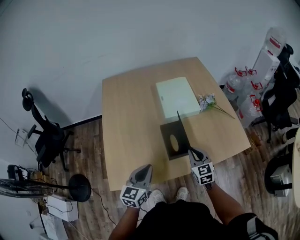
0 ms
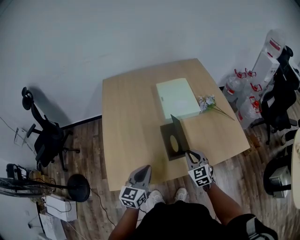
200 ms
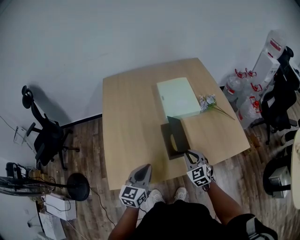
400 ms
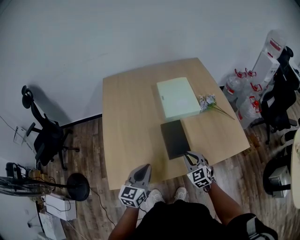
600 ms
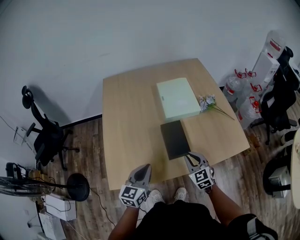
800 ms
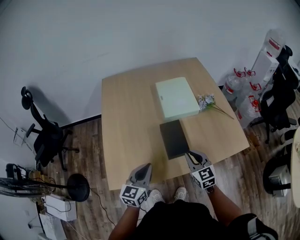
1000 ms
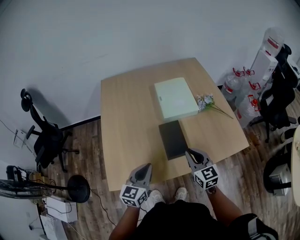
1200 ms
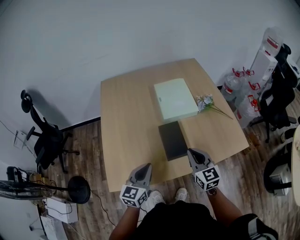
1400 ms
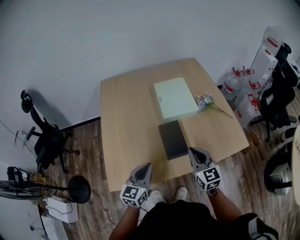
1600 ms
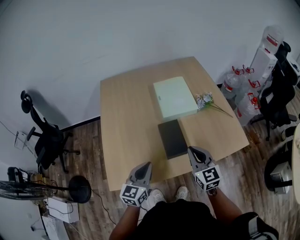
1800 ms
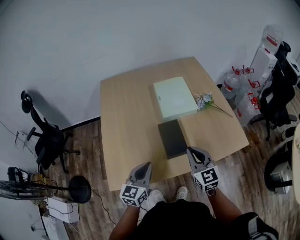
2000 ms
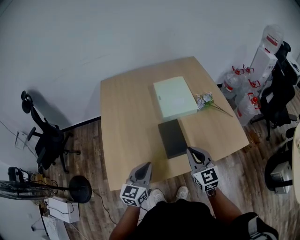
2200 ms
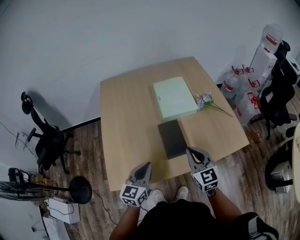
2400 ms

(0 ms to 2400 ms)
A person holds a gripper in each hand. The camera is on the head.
0 ms - 1200 ms: The right gripper shifts approximately 5 cm upward.
1200 ms - 2400 ms: The grippers move only a little.

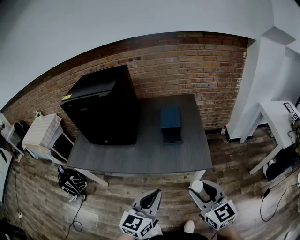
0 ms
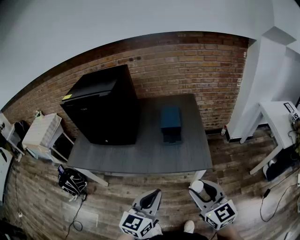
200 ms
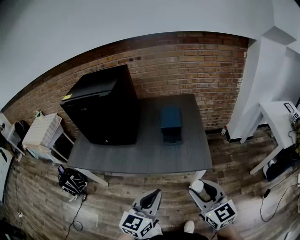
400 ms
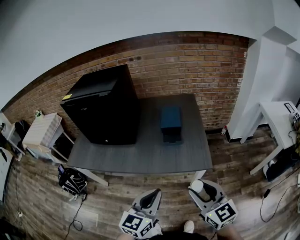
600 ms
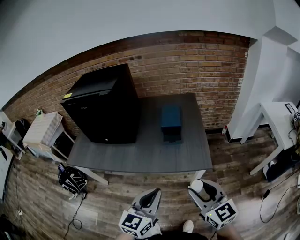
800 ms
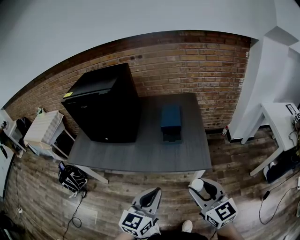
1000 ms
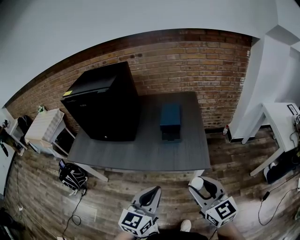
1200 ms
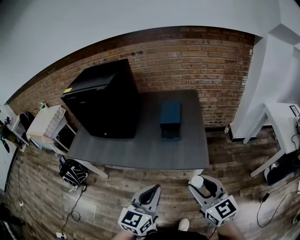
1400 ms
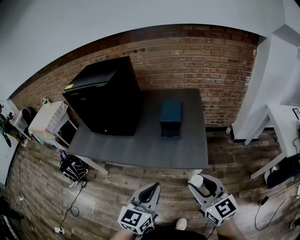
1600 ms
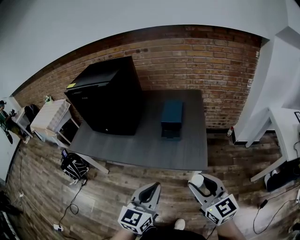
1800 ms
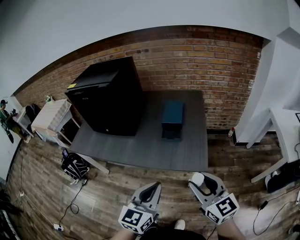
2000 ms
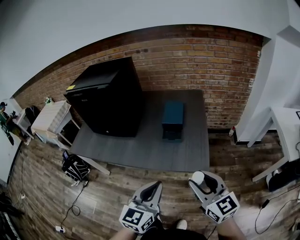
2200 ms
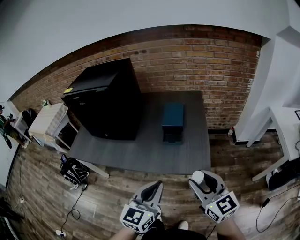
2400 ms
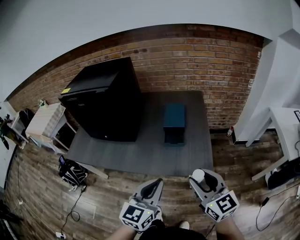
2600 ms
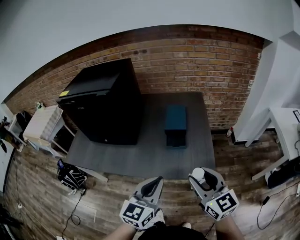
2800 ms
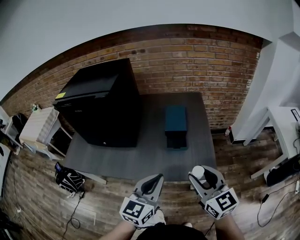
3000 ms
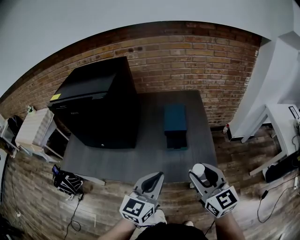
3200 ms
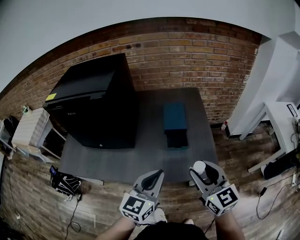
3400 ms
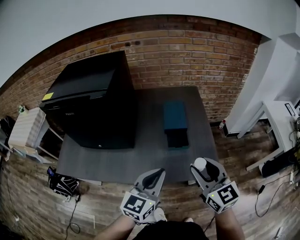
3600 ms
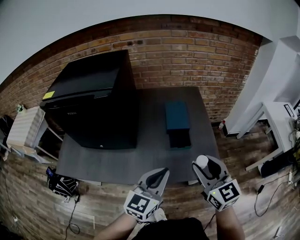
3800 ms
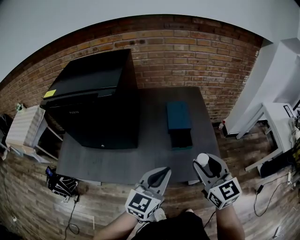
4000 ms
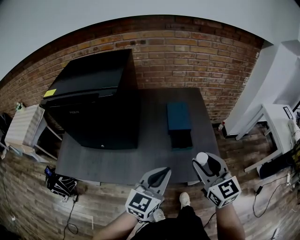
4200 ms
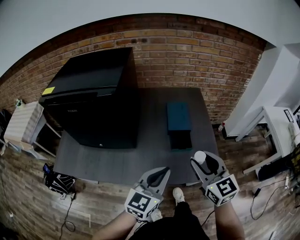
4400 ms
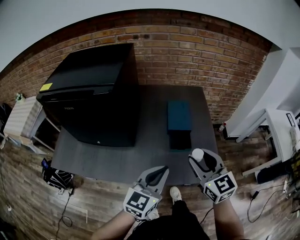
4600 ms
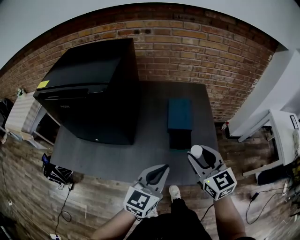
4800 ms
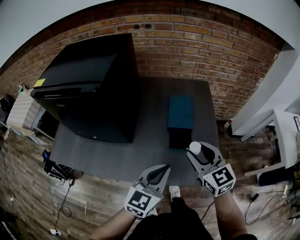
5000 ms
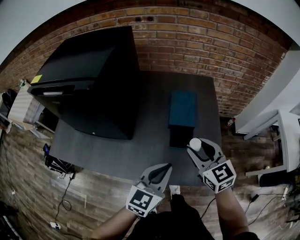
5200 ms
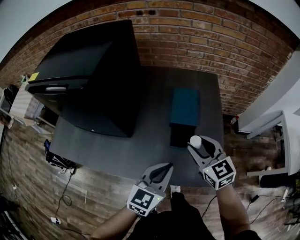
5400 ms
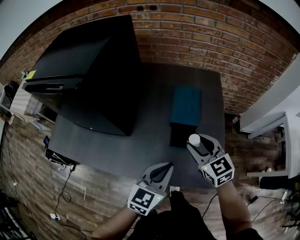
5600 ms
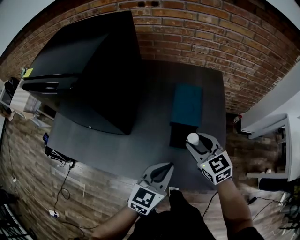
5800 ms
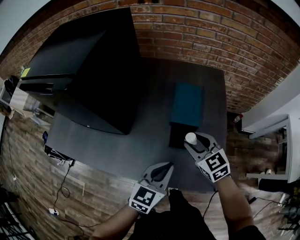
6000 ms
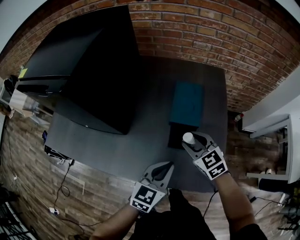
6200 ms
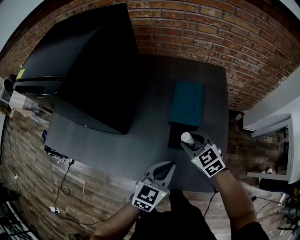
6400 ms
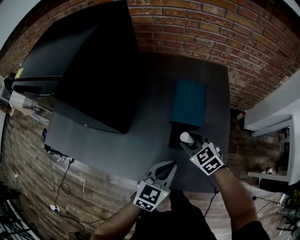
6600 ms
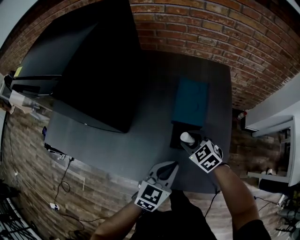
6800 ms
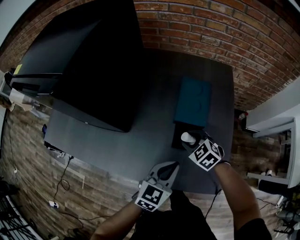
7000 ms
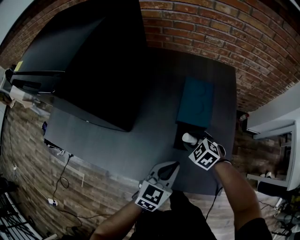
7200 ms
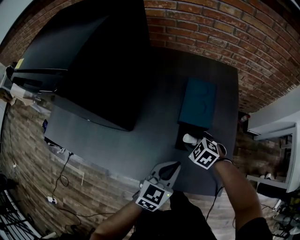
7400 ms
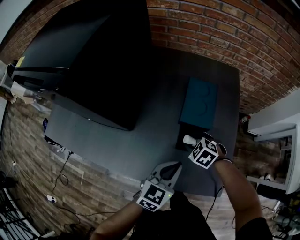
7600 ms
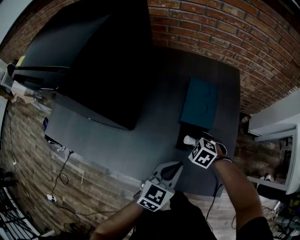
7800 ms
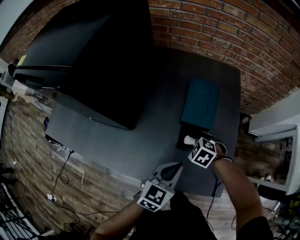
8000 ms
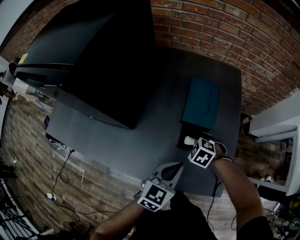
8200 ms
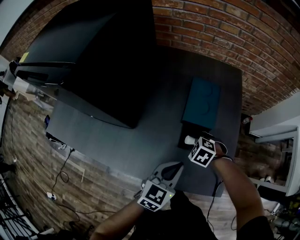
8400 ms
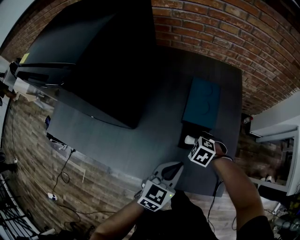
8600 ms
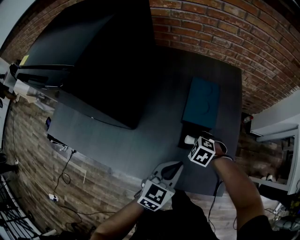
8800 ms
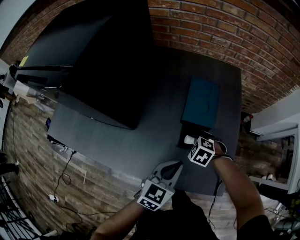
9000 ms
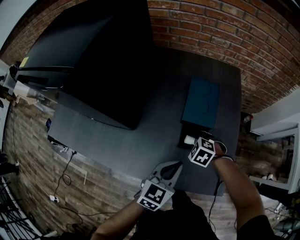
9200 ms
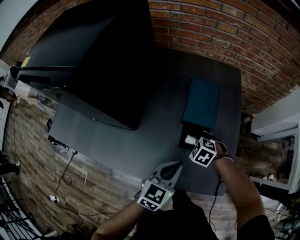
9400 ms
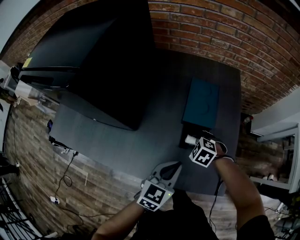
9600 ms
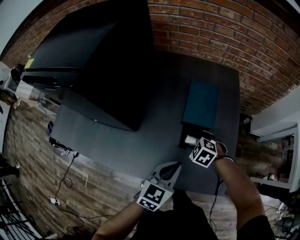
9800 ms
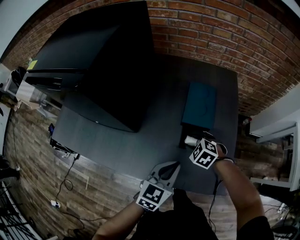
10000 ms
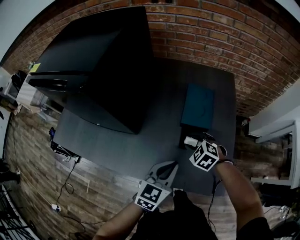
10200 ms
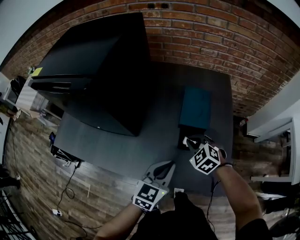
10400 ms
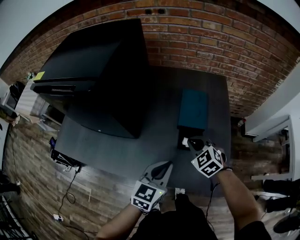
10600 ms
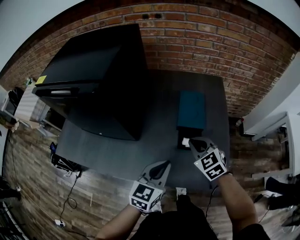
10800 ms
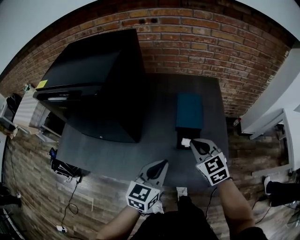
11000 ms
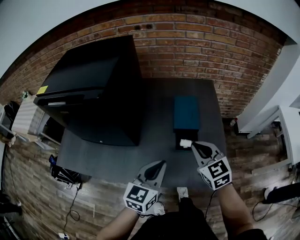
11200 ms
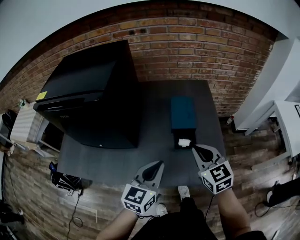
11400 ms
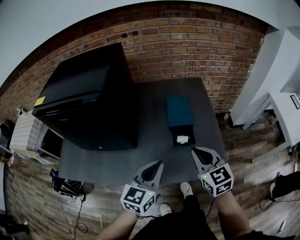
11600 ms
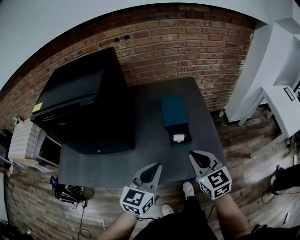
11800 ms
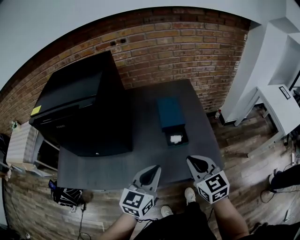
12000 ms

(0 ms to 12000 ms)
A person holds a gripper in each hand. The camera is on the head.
0 ms - 1600 ms: The two grippers go some 5 cm to the right.
1600 ms - 3000 ms: Both grippers move forward and to the left, about 15 cm.
3000 ms - 4400 ms: Both grippers move forward and to the left, roughly 10 cm.
4400 ms - 6000 ms: The right gripper heads forward and downward, covering about 25 cm, and changes its angle by some 30 degrees. Meanwhile the left gripper heads downward, forward and to the right, covering some 15 cm.
6000 ms - 7600 ms: The right gripper is displaced downward by some 15 cm, and tilts its fingers approximately 30 degrees downward. Meanwhile the left gripper changes place by some 5 cm.
7600 ms - 9000 ms: The grippers make only small movements.
9000 ms - 10400 ms: The right gripper heads upward, covering about 10 cm, turns by some 20 degrees, and closes its fingers. The left gripper shifts by some 5 cm.
10400 ms - 12000 ms: The right gripper shifts some 25 cm backward and upward, and swivels roughly 50 degrees. The left gripper travels upward, backward and to the left by about 15 cm.

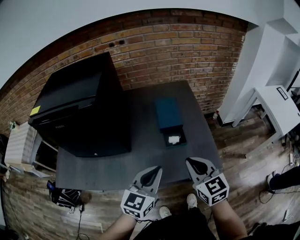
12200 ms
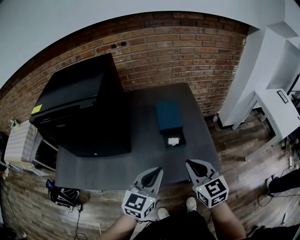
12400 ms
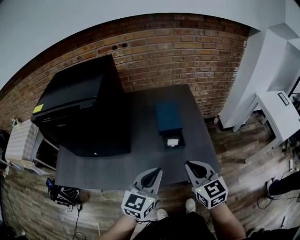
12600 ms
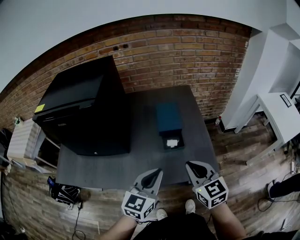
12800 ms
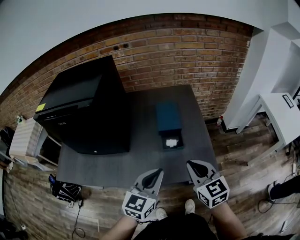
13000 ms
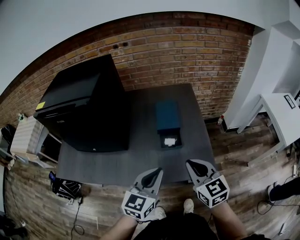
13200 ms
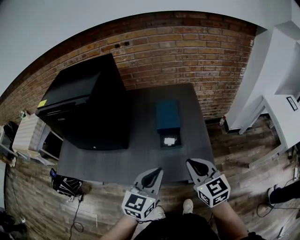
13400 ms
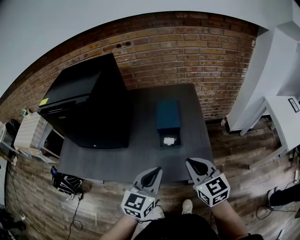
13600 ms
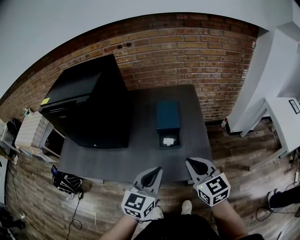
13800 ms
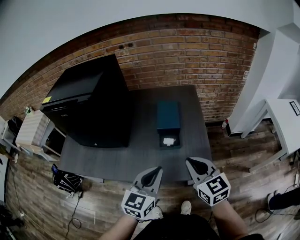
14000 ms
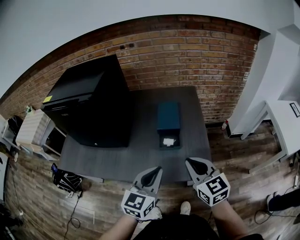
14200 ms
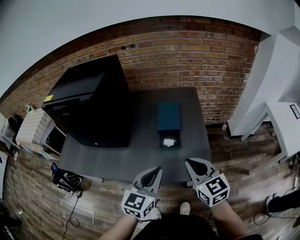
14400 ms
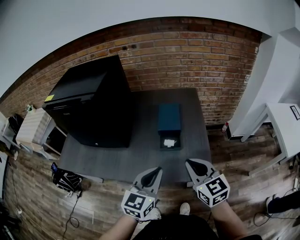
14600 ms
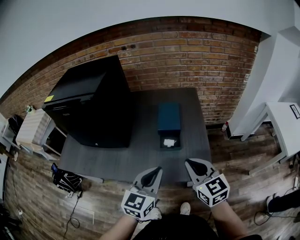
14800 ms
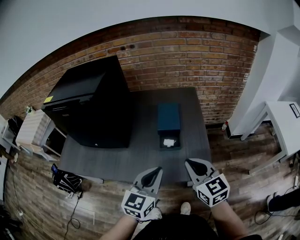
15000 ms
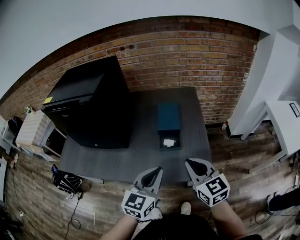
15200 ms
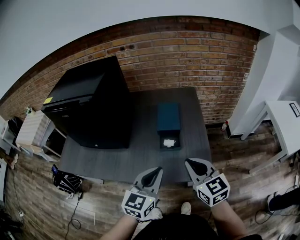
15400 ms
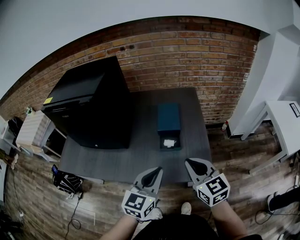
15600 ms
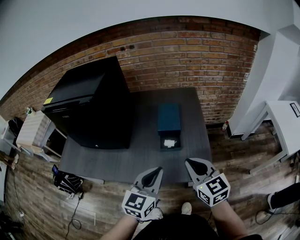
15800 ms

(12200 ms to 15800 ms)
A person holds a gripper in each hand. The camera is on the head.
12200 ms - 14000 ms: The two grippers go roughly 10 cm to the right.
14000 ms - 15800 ms: Both grippers stay about where they are.

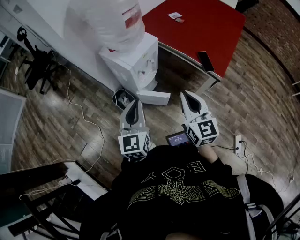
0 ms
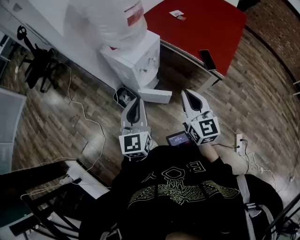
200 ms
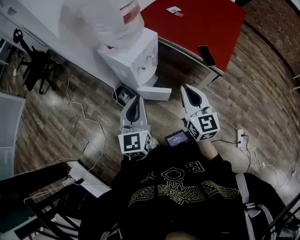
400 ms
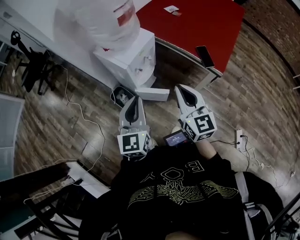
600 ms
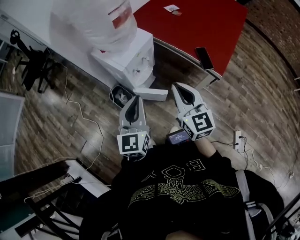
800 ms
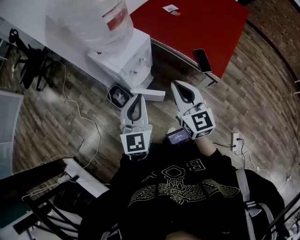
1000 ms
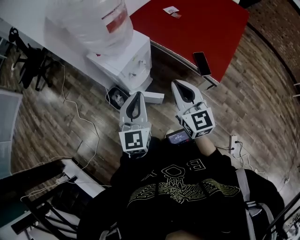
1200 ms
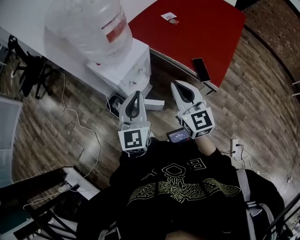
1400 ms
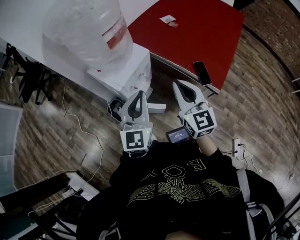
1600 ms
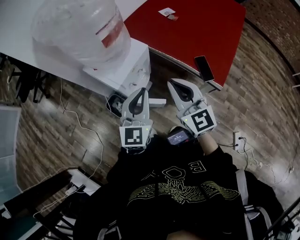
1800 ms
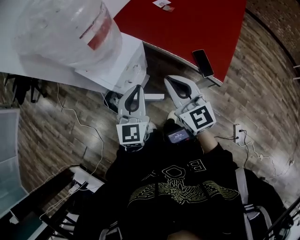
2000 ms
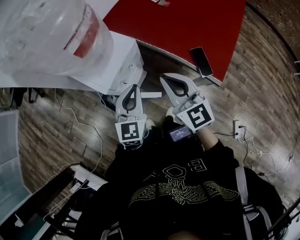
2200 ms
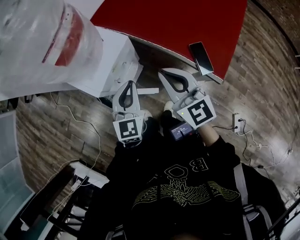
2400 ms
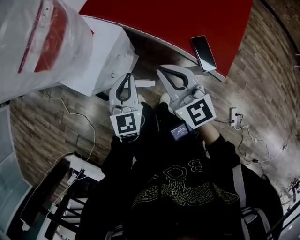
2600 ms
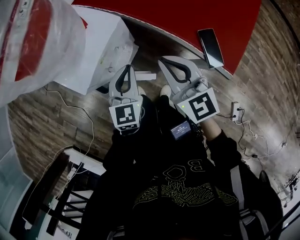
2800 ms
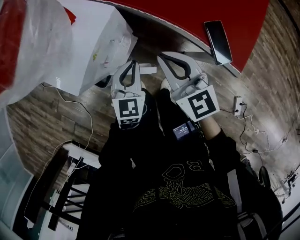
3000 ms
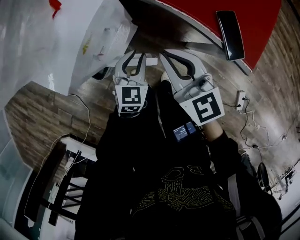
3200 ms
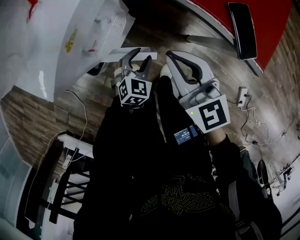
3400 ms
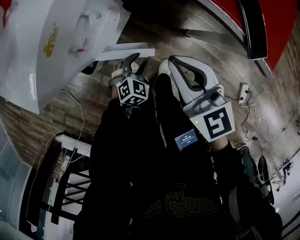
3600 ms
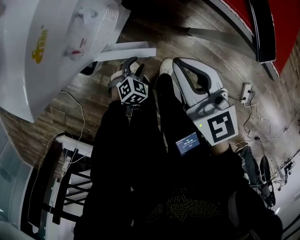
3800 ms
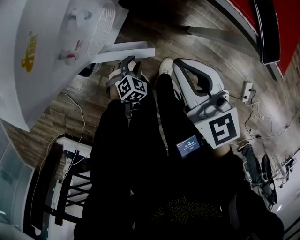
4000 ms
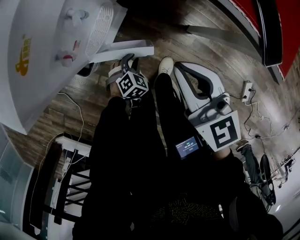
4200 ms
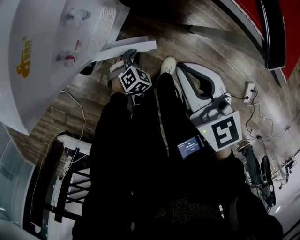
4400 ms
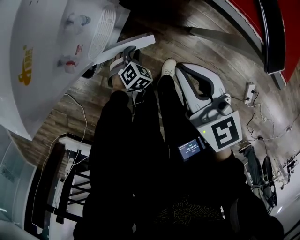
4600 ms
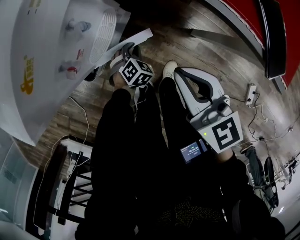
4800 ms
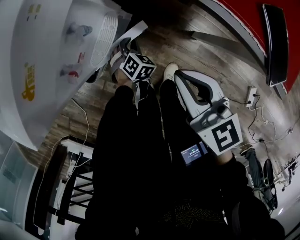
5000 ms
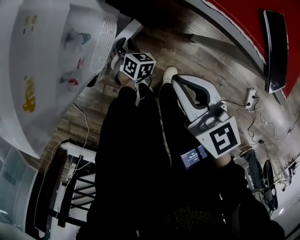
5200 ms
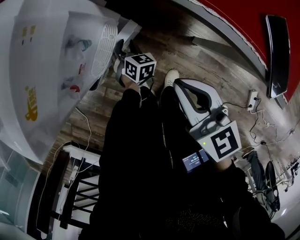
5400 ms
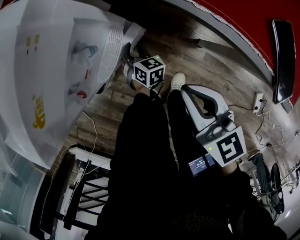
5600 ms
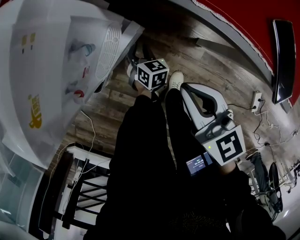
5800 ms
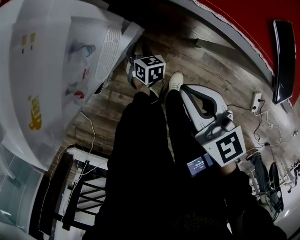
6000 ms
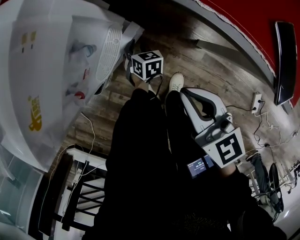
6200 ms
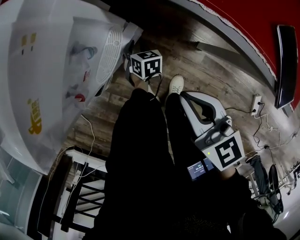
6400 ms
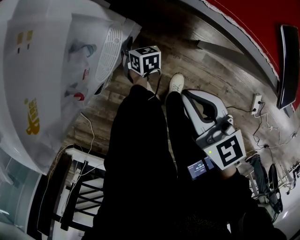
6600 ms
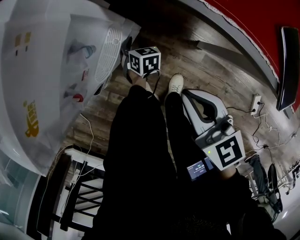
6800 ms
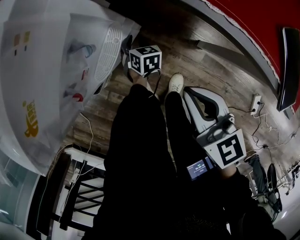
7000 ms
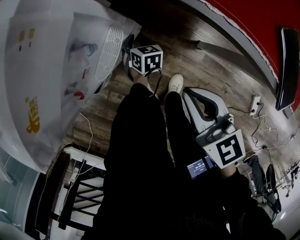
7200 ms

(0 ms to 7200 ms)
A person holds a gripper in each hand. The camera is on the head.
0 ms - 1400 ms: The right gripper heads forward, covering about 10 cm; the left gripper heads forward and to the right, covering roughly 15 cm.
1400 ms - 2800 ms: The right gripper moves forward and downward, about 20 cm. Meanwhile the left gripper goes about 25 cm downward and forward, and changes its angle by about 20 degrees.
2800 ms - 4400 ms: The left gripper moves downward, roughly 40 cm, tips its fingers downward by approximately 40 degrees, and opens, then closes once more. The right gripper shifts about 20 cm downward.
4400 ms - 5800 ms: The left gripper moves forward, about 15 cm, and turns by about 40 degrees.
5800 ms - 7200 ms: The grippers move only a little.
